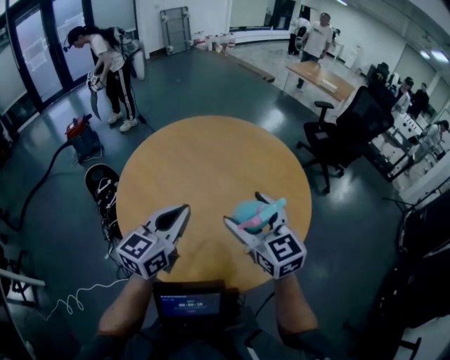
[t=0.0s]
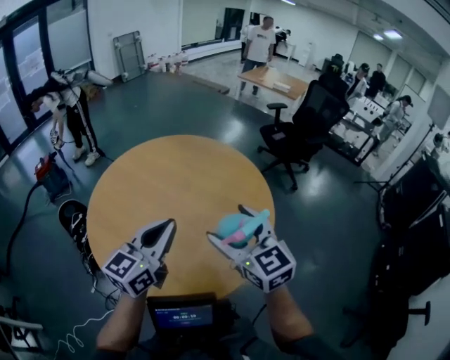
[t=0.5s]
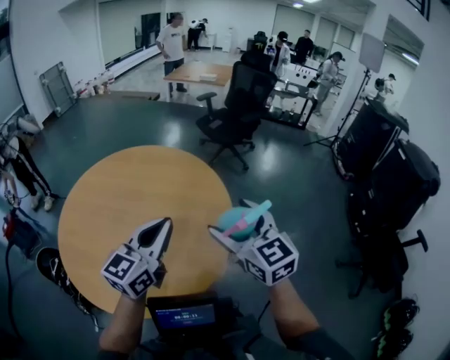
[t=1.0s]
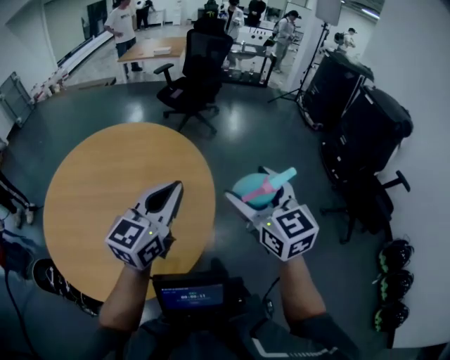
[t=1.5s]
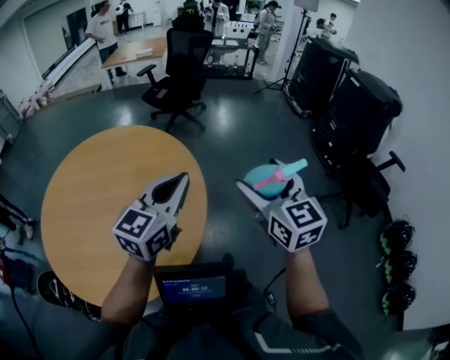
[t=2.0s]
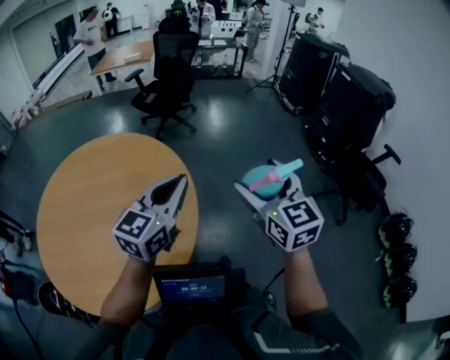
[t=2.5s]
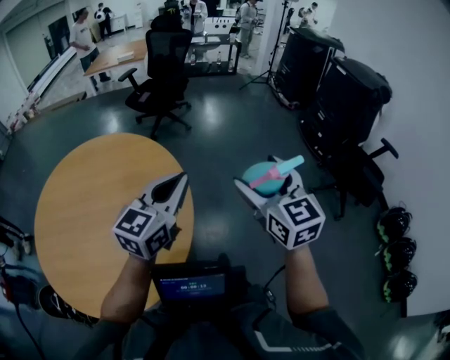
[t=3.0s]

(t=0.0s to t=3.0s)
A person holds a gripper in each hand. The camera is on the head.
t=0.0s - t=1.5s: The left gripper ends up some 30 cm from where it was, and changes its angle by about 40 degrees, while the right gripper ends up about 30 cm from where it was, and swivels roughly 50 degrees.
t=1.5s - t=3.0s: The two grippers go roughly 5 cm to the right.

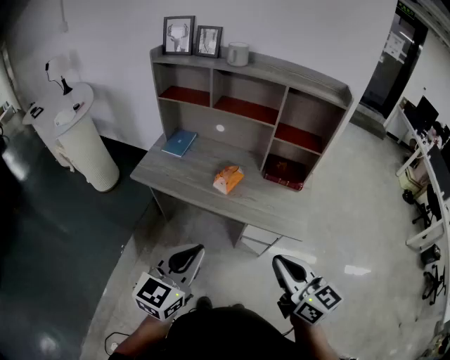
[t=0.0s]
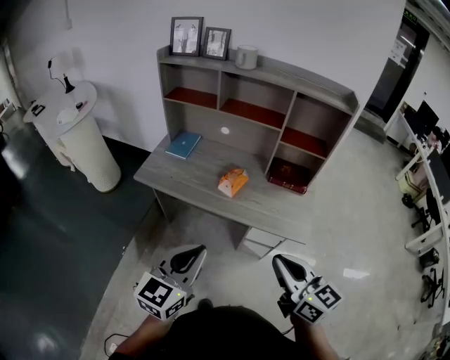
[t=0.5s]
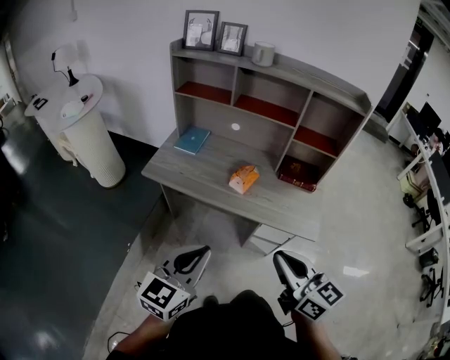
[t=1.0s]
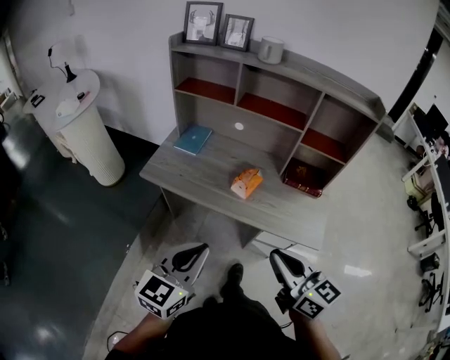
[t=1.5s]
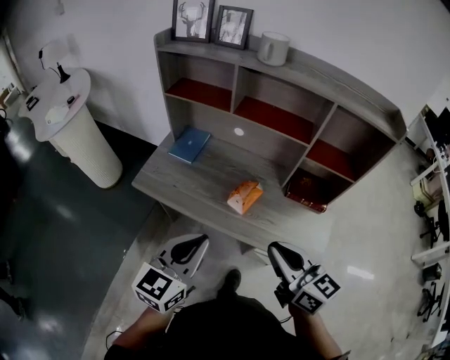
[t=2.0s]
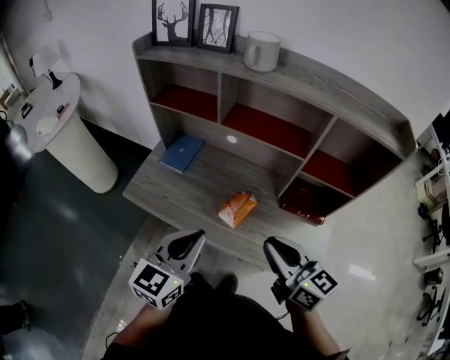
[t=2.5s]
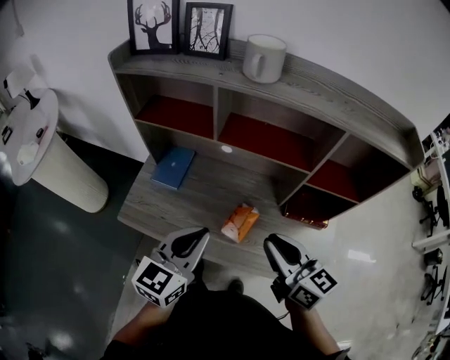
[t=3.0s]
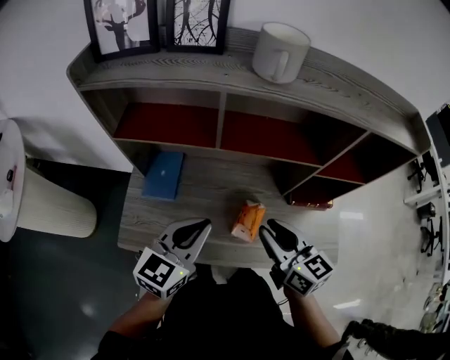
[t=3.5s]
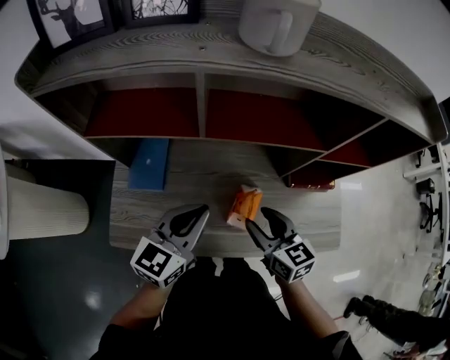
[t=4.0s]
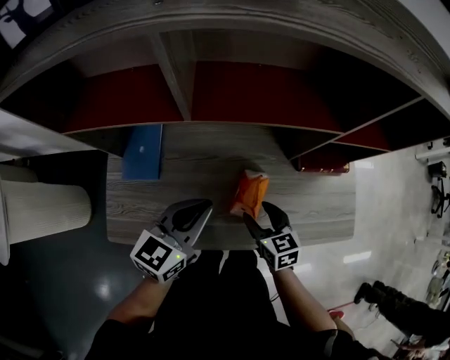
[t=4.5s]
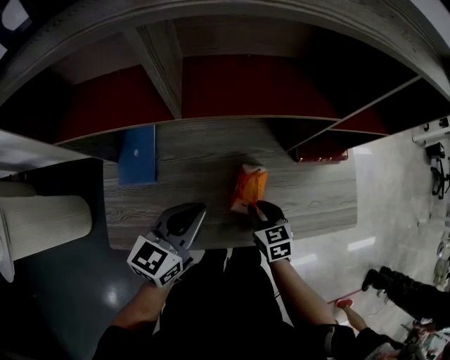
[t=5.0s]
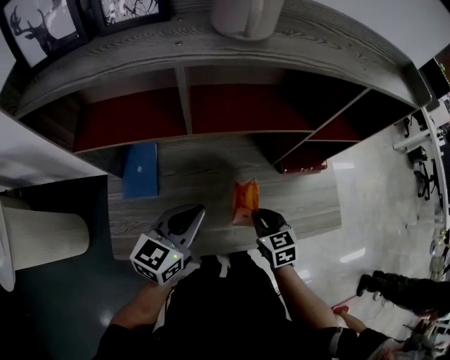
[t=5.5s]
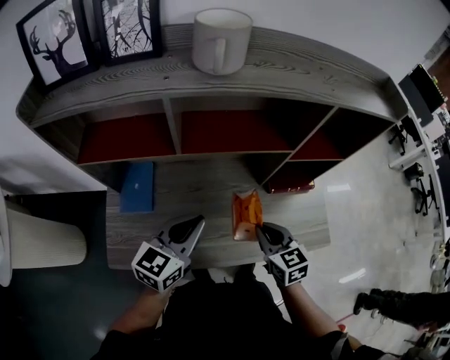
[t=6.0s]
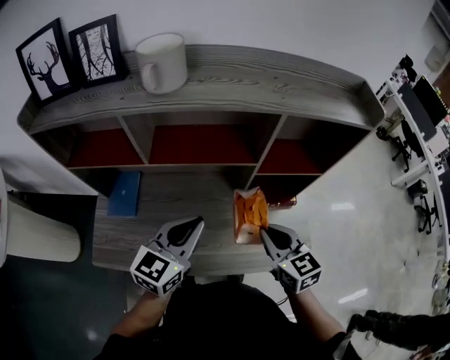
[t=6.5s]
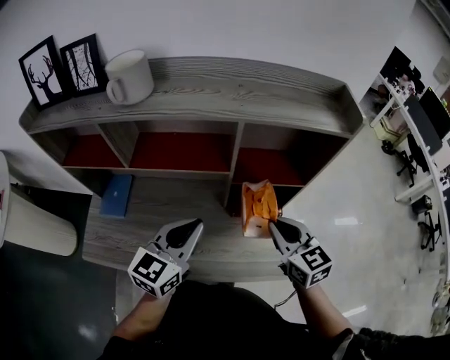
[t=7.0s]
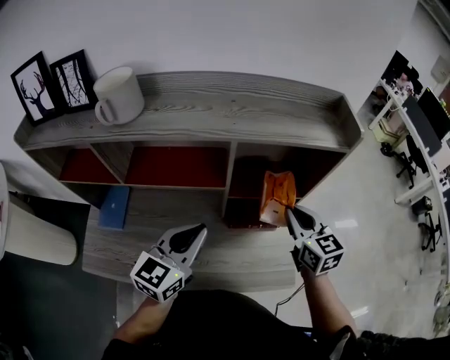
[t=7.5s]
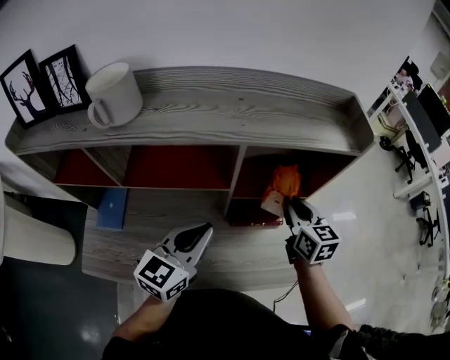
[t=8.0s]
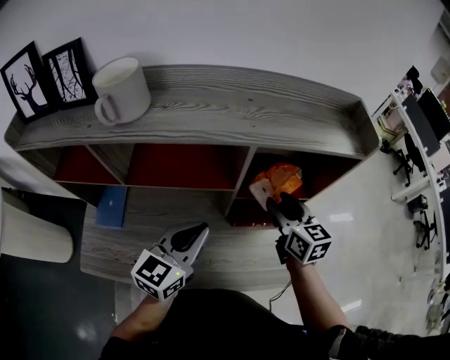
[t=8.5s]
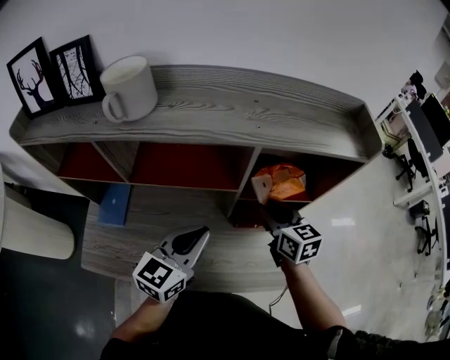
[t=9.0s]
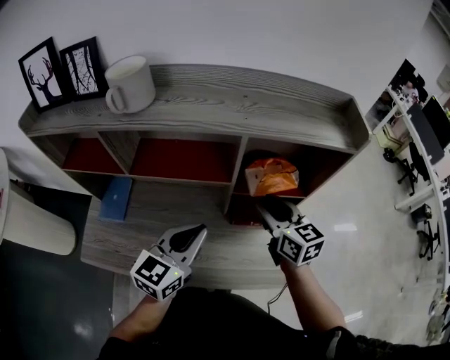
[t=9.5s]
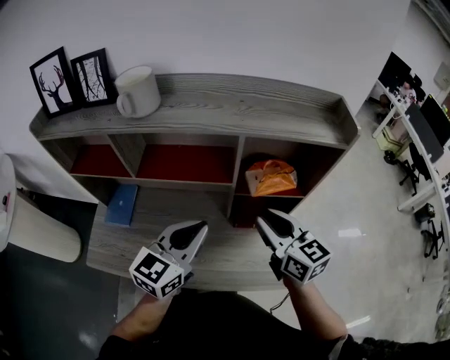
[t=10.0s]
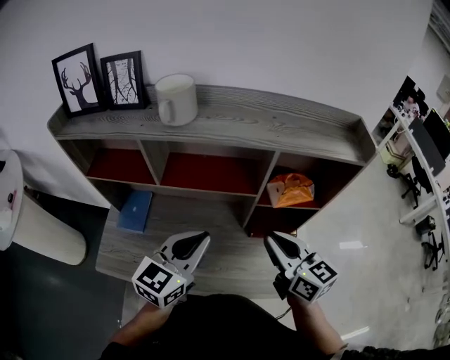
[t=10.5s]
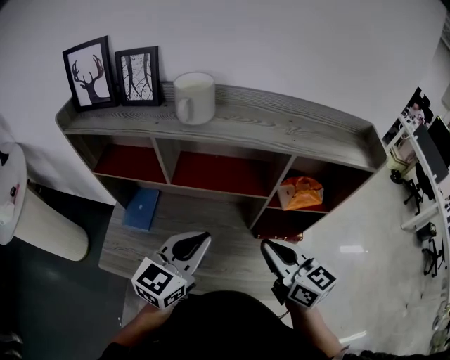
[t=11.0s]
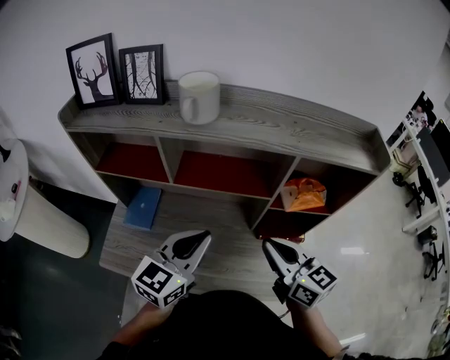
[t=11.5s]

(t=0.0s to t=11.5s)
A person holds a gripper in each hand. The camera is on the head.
t=0.0s - t=2.0s: Both grippers travel together forward, roughly 20 cm.
t=2.0s - t=4.0s: The left gripper is displaced forward by approximately 30 cm, and changes its angle by about 20 degrees, while the right gripper goes roughly 30 cm forward and downward, changes its angle by some 30 degrees, and opens.
t=4.0s - t=6.0s: The left gripper moves about 10 cm downward and comes back. Meanwhile the right gripper heads to the right, covering about 5 cm, goes downward and returns, some 20 cm each way, and closes its fingers.
t=6.0s - t=7.5s: The left gripper shifts about 20 cm to the right. Meanwhile the right gripper heads to the right, forward and upward, covering roughly 30 cm.
t=7.5s - t=9.5s: The right gripper moves to the left, roughly 10 cm, and opens up.
t=9.5s - t=11.5s: The right gripper is displaced to the left, backward and upward by about 15 cm, and closes up, while the left gripper heads to the left, covering roughly 10 cm.

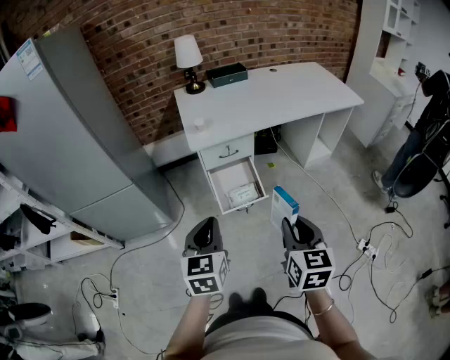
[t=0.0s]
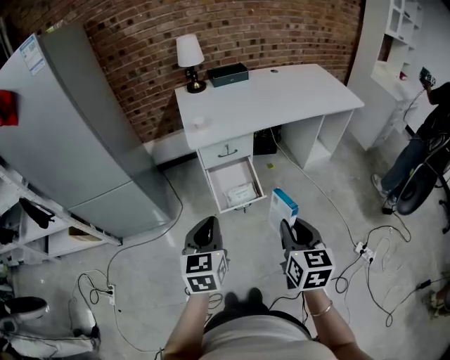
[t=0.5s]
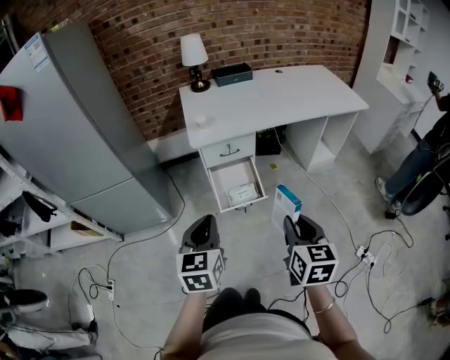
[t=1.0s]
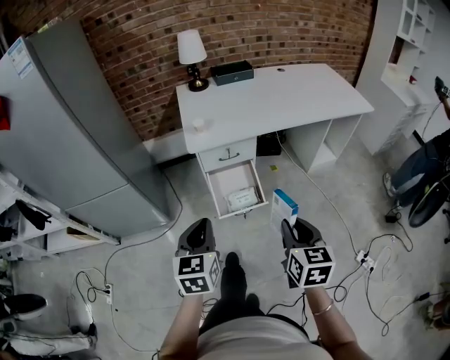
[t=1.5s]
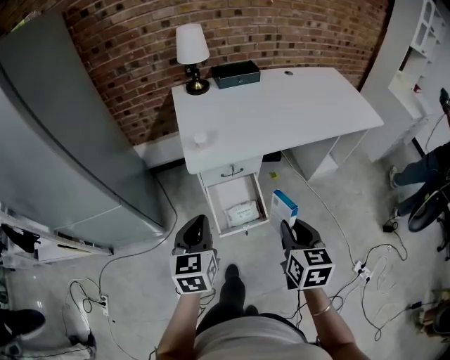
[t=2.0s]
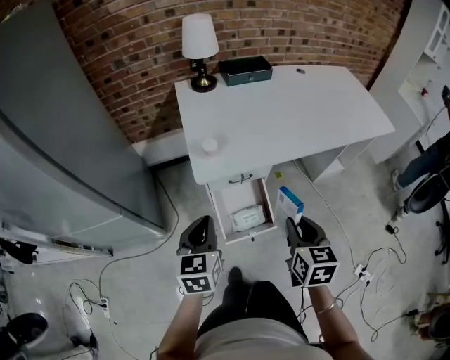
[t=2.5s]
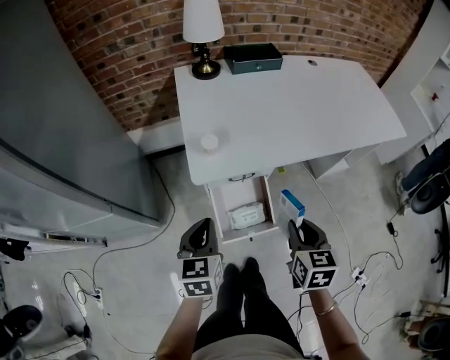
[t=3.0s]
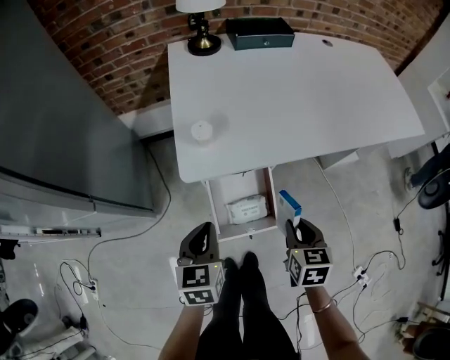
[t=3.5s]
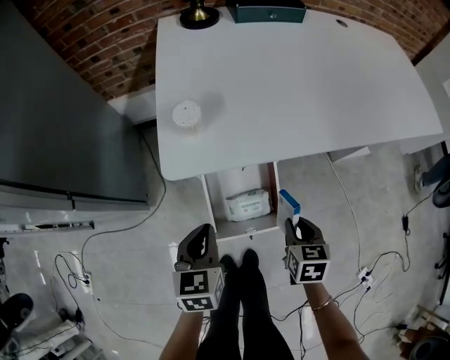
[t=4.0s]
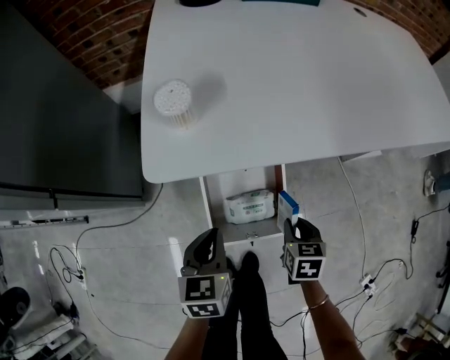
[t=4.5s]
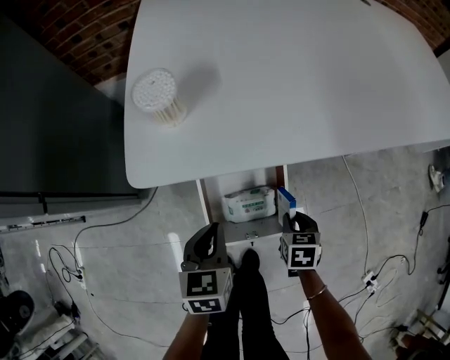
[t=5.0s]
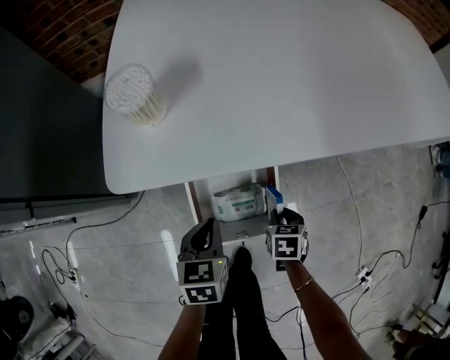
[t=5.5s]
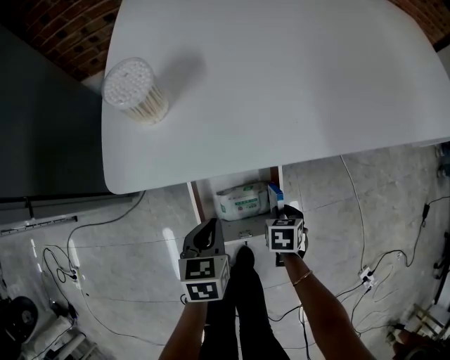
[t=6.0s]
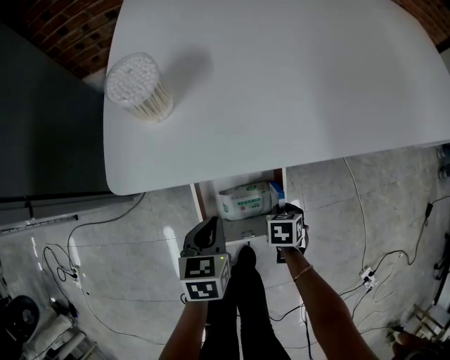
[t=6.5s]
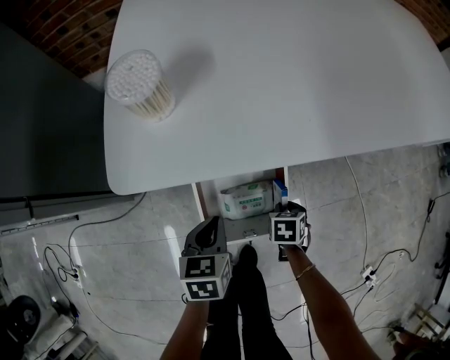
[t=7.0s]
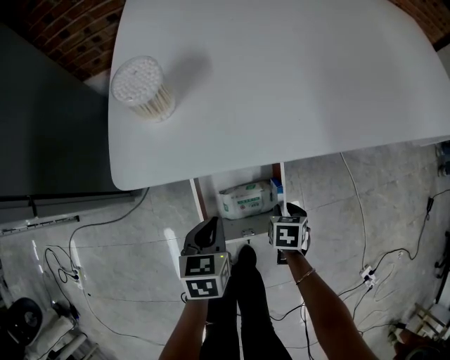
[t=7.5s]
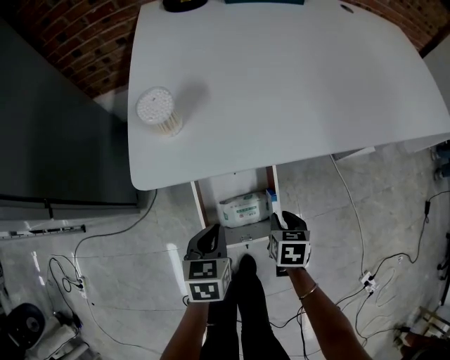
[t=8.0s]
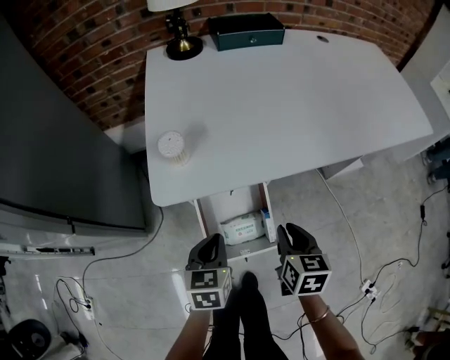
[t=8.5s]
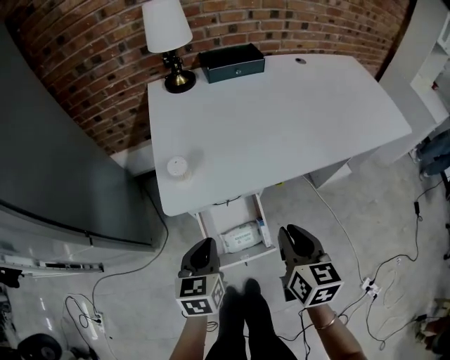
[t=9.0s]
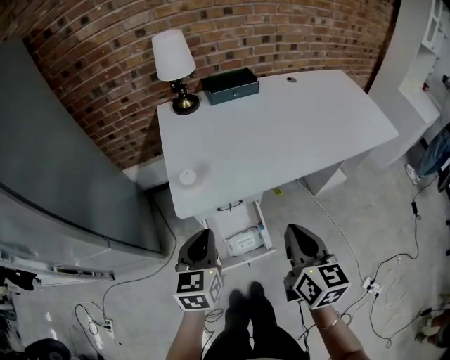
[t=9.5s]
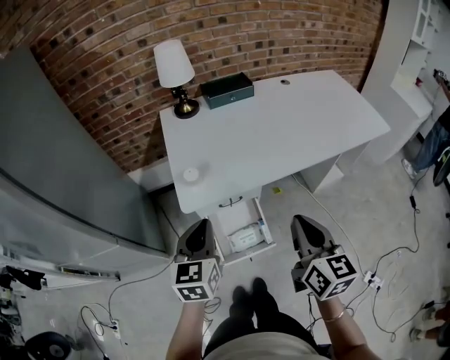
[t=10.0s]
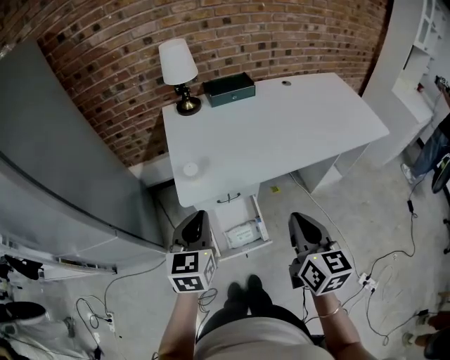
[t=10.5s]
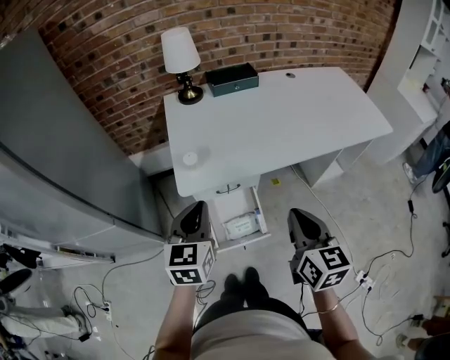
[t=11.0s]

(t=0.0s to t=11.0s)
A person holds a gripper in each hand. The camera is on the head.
t=0.0s - t=2.0s: Both grippers move forward, approximately 25 cm.
t=2.0s - t=3.5s: Both grippers travel together downward and forward, approximately 30 cm.
t=3.5s - t=5.5s: Both grippers move downward, roughly 30 cm. The right gripper rotates some 20 degrees.
t=5.5s - t=7.5s: The grippers move only a little.
t=7.5s - t=9.0s: The left gripper goes approximately 30 cm upward, while the right gripper travels upward by about 50 cm, and tilts its fingers about 40 degrees upward.
t=9.0s - t=11.0s: The left gripper heads upward, covering about 20 cm. The right gripper goes about 20 cm upward and backward.

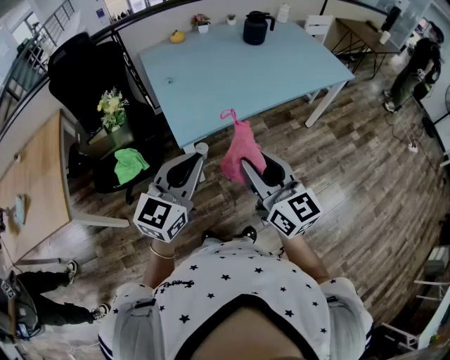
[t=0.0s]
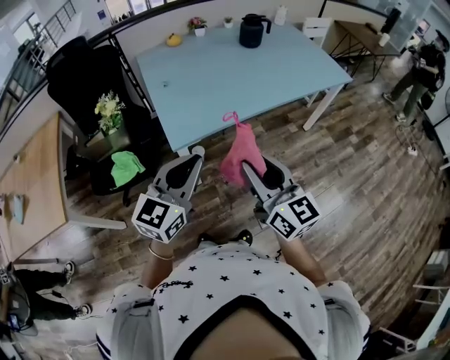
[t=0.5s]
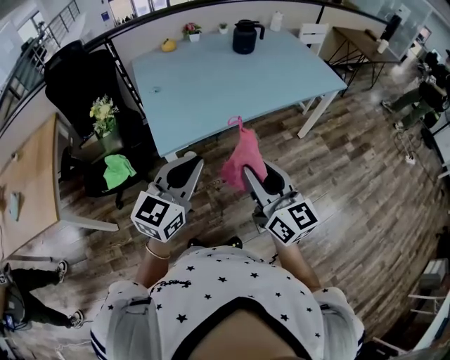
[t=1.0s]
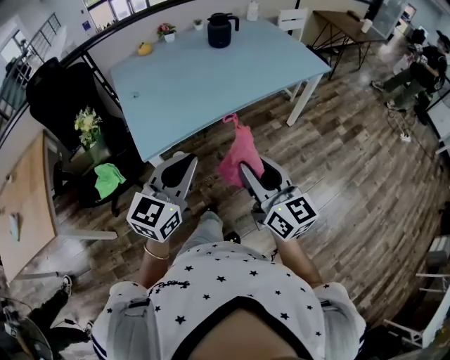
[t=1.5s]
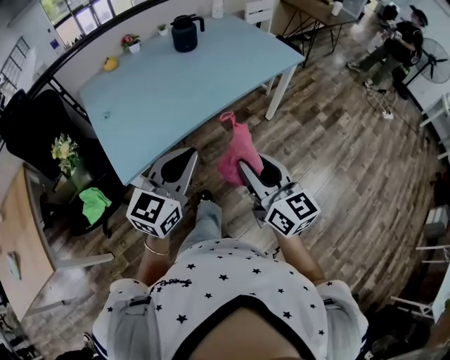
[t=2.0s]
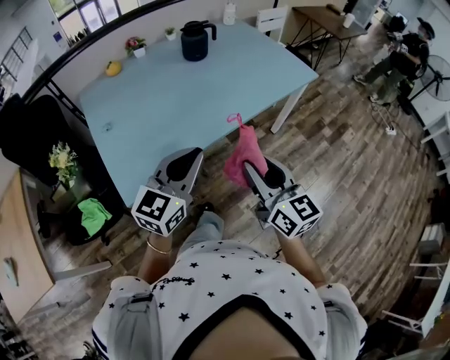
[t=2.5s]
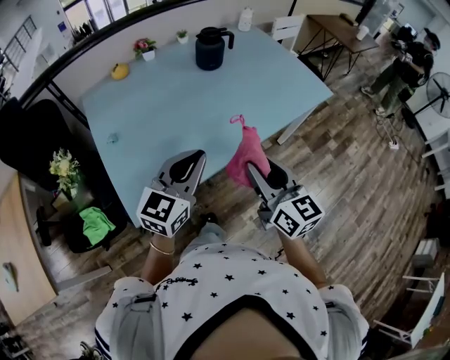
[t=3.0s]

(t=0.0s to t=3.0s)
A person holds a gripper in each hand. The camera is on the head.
t=0.0s - t=1.5s: Both grippers move to the right, some 15 cm.
t=1.5s - t=3.0s: Both grippers travel together forward, about 25 cm.
